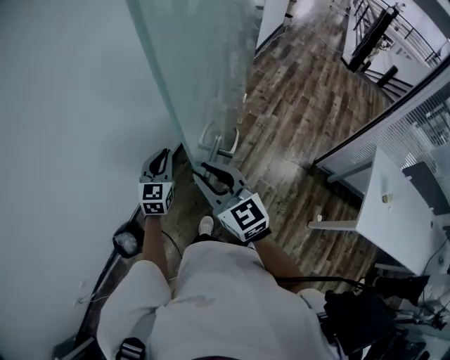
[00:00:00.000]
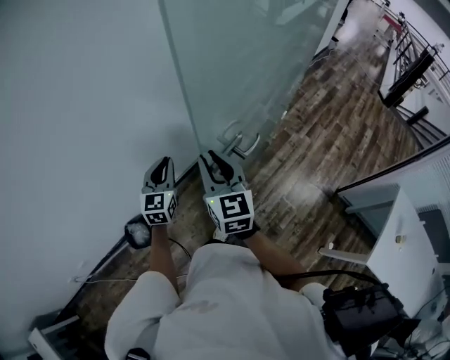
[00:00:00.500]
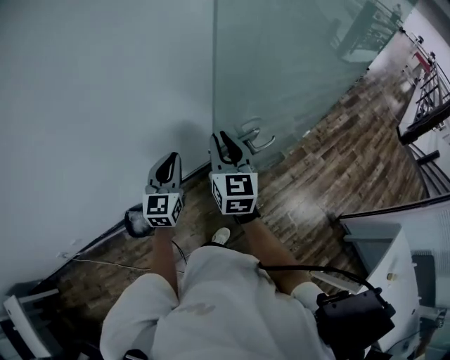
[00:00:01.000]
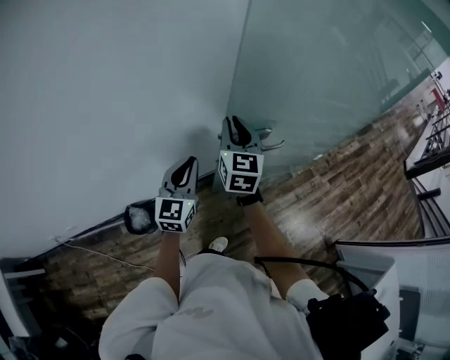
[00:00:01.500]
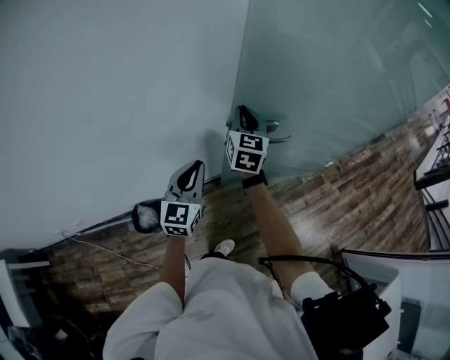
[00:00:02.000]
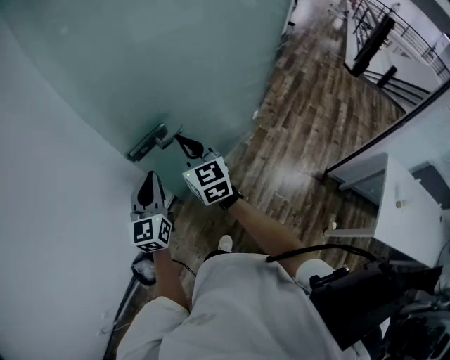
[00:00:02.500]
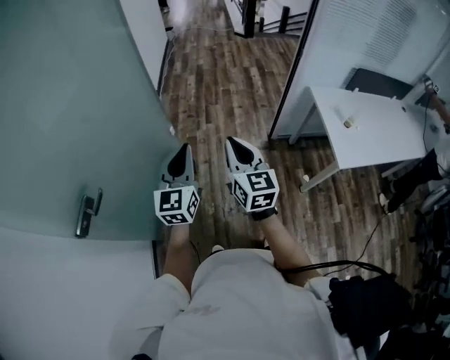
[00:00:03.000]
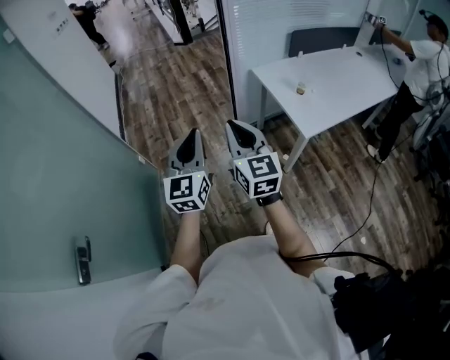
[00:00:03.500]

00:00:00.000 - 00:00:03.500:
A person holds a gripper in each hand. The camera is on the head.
00:00:00.000 - 00:00:02.000: The left gripper is displaced to the left by some 25 cm, and rotates roughly 30 degrees, while the right gripper heads forward and to the left, covering approximately 40 cm.
00:00:02.000 - 00:00:03.500: The two grippers travel together, approximately 80 cm. The right gripper changes its angle by roughly 70 degrees, while the left gripper rotates about 80 degrees.

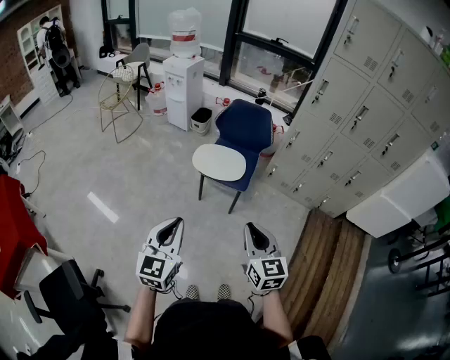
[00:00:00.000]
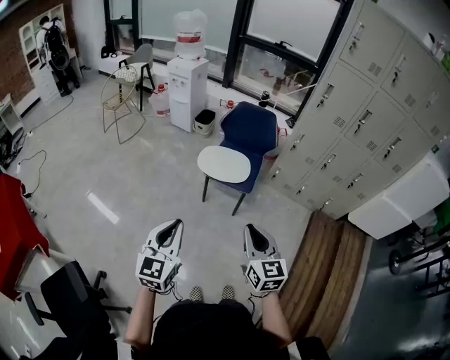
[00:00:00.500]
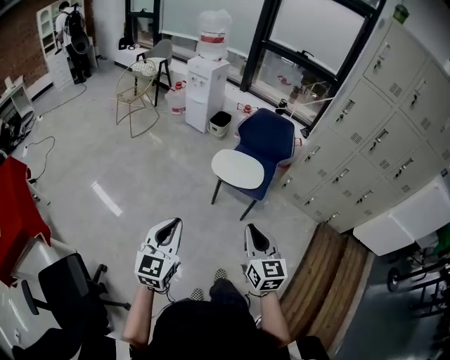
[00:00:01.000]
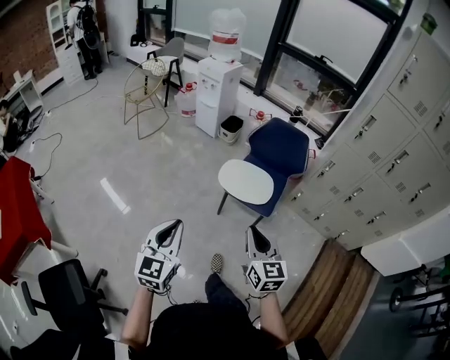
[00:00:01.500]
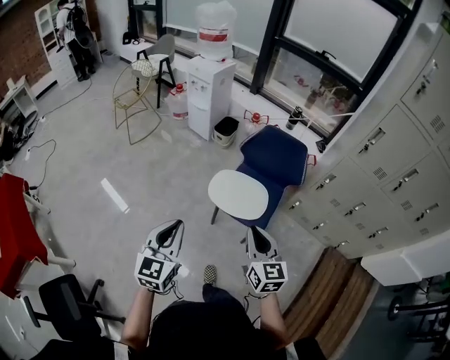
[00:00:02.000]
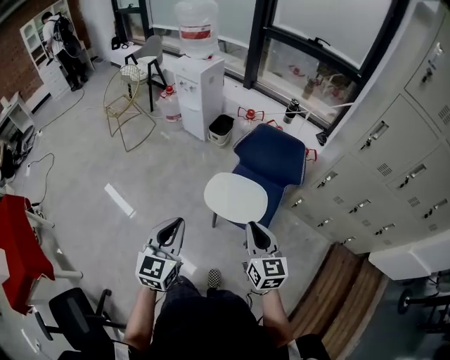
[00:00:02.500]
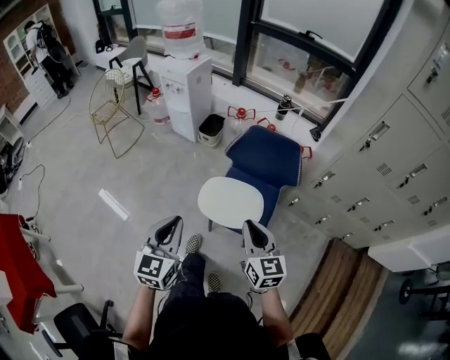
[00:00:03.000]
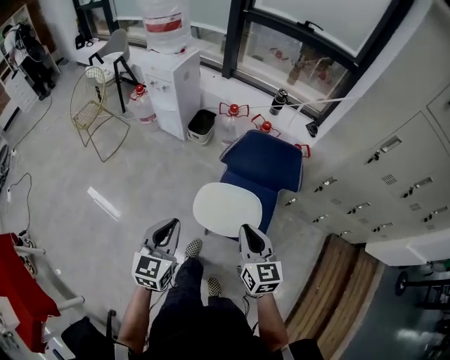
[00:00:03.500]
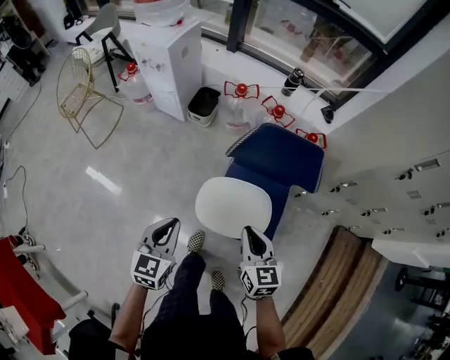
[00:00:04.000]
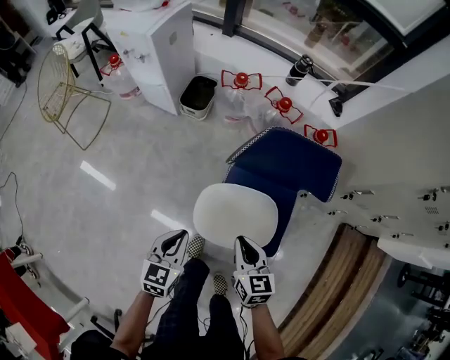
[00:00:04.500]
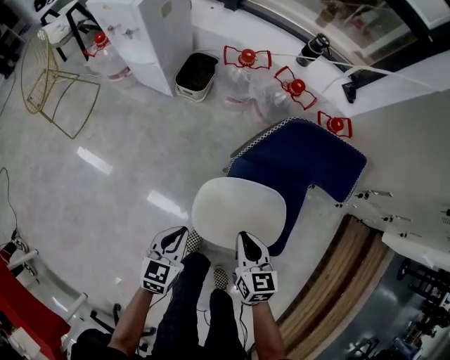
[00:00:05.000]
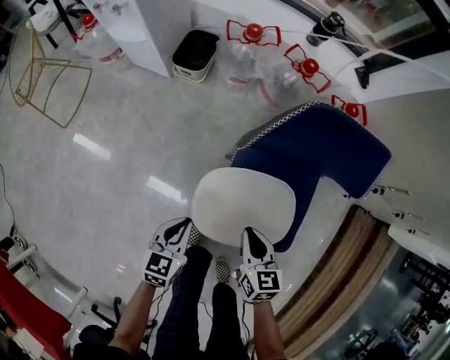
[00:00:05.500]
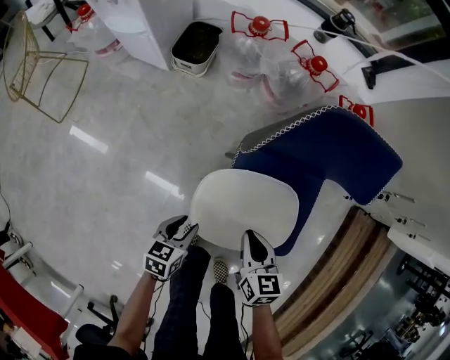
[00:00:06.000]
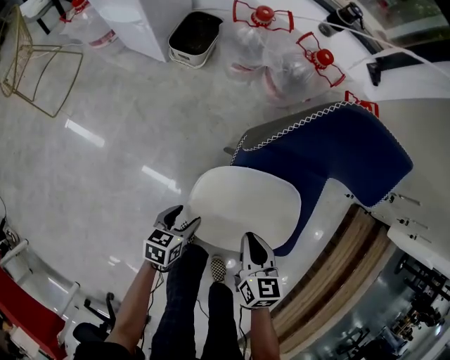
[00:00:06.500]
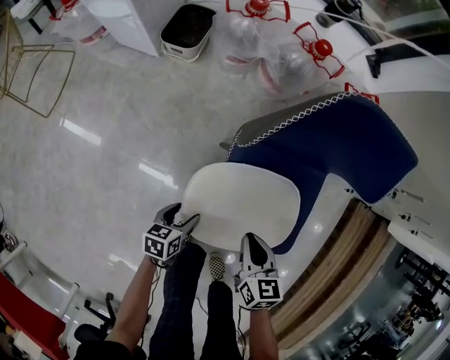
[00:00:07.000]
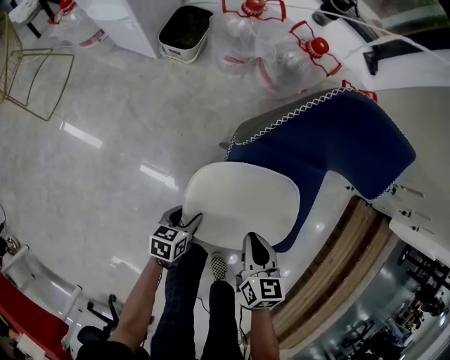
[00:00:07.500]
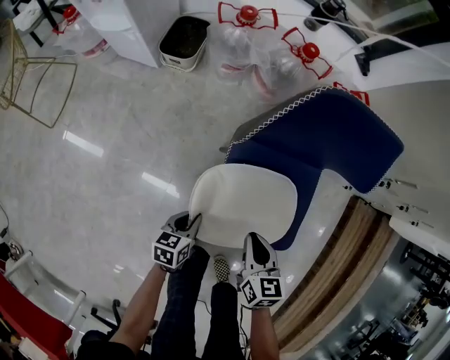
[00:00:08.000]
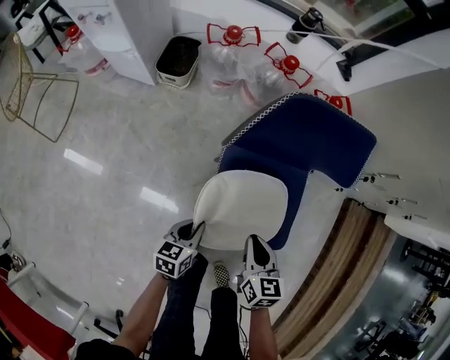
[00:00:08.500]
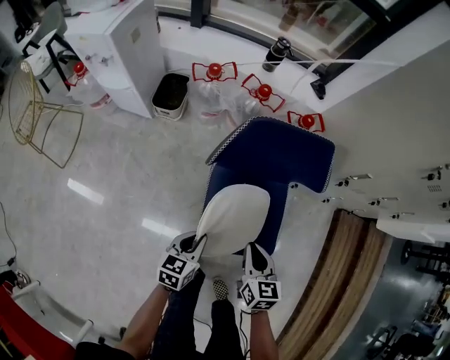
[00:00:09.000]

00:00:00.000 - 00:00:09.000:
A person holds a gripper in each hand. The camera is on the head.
00:00:00.000 - 00:00:02.000: The grippers both shift forward by approximately 35 cm.
00:00:02.000 - 00:00:04.500: The pair of grippers is taken forward, some 50 cm. The two grippers go approximately 30 cm downward. The left gripper rotates some 30 degrees. Meanwhile the right gripper rotates about 30 degrees.
00:00:04.500 - 00:00:07.000: The left gripper shifts about 40 cm downward, rotates about 40 degrees, and opens its fingers, while the right gripper moves downward, some 25 cm.
00:00:07.000 - 00:00:09.000: The grippers both shift upward by roughly 20 cm. The left gripper turns by some 20 degrees, and closes up.

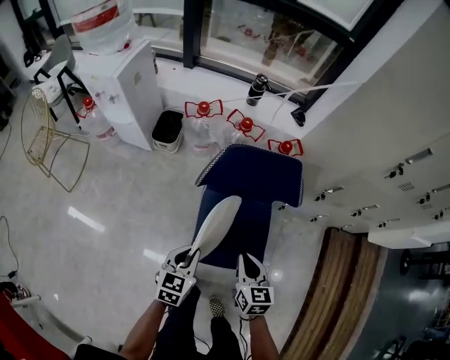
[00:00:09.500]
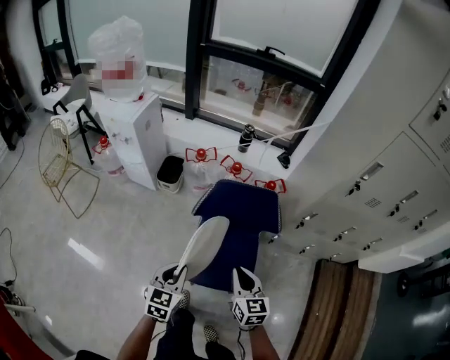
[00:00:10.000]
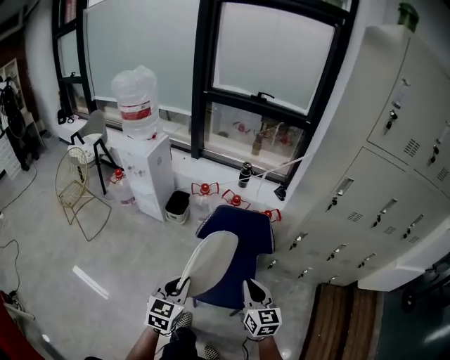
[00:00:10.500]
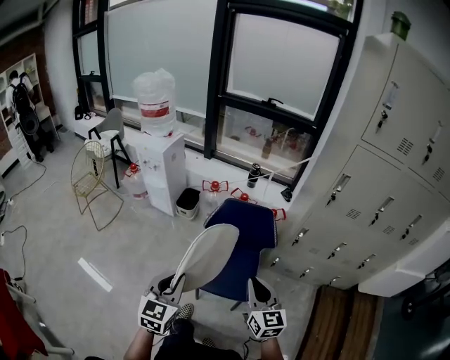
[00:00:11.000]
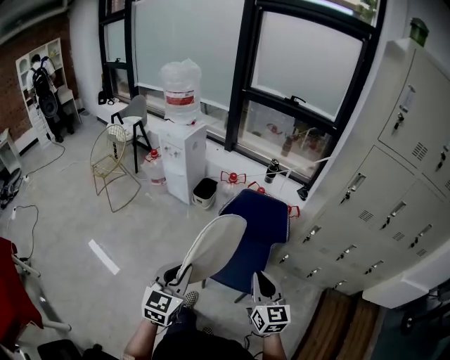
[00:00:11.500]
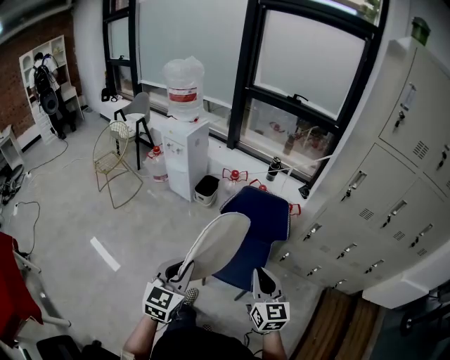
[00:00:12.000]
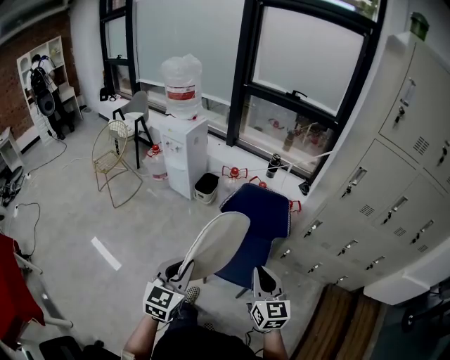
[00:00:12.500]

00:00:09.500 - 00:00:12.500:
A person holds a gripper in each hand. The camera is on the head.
00:00:09.500 - 00:00:11.000: Both grippers move upward and backward, roughly 40 cm. The left gripper rotates approximately 30 degrees. The right gripper changes its angle by roughly 30 degrees.
00:00:11.000 - 00:00:12.500: The left gripper is displaced backward by roughly 5 cm.

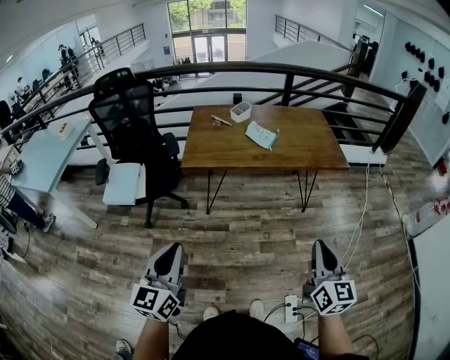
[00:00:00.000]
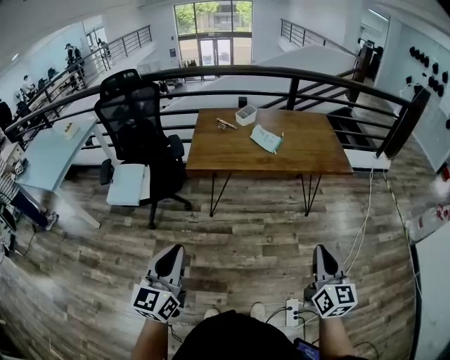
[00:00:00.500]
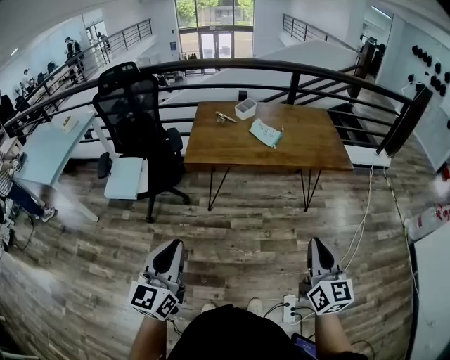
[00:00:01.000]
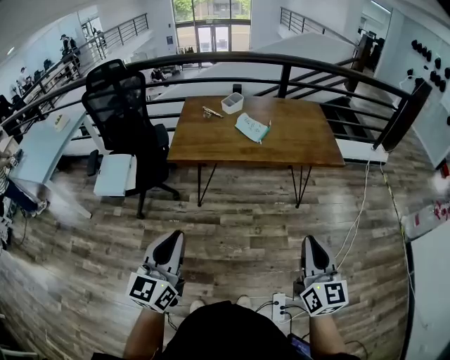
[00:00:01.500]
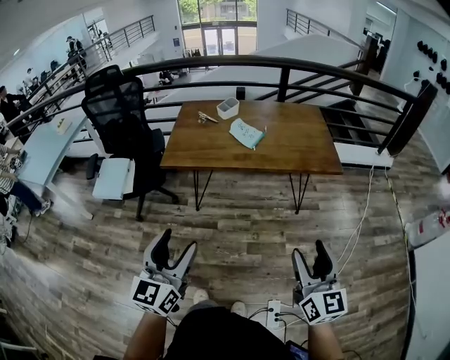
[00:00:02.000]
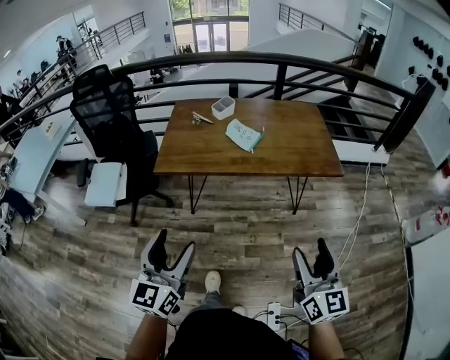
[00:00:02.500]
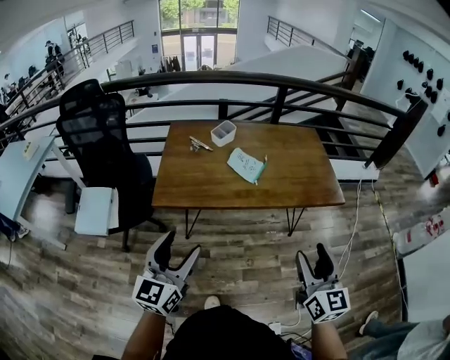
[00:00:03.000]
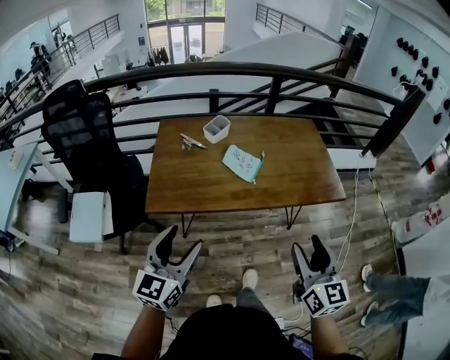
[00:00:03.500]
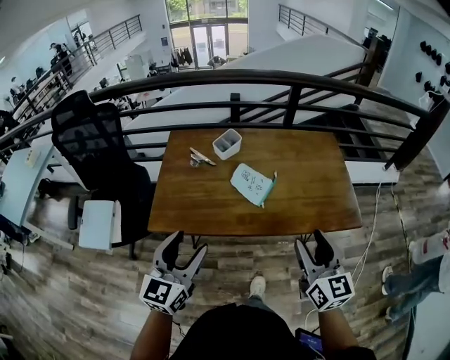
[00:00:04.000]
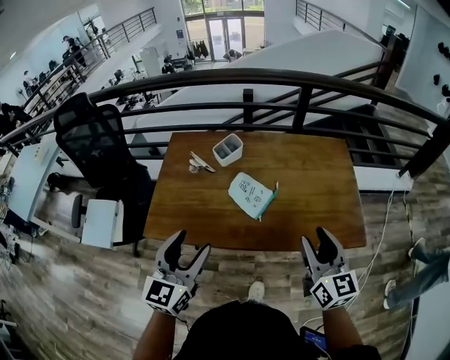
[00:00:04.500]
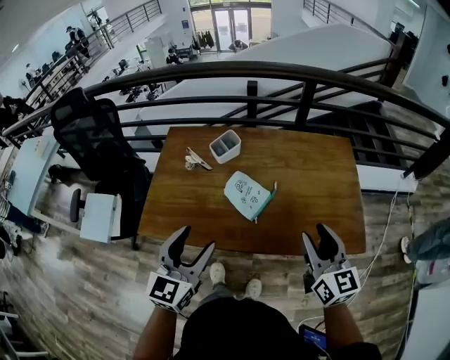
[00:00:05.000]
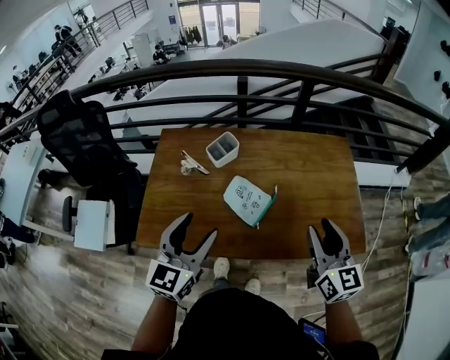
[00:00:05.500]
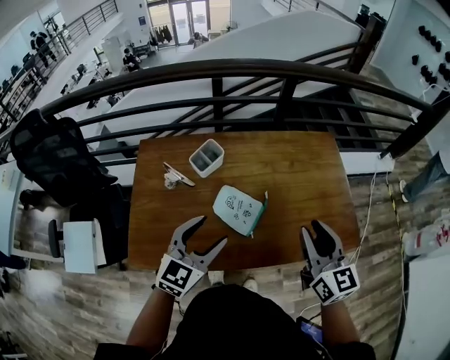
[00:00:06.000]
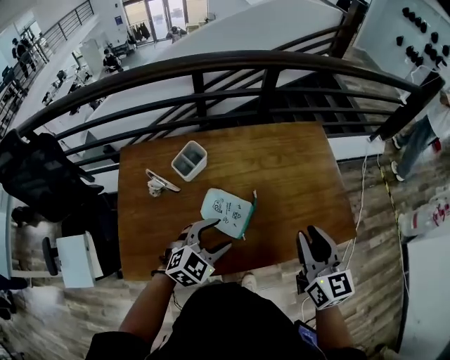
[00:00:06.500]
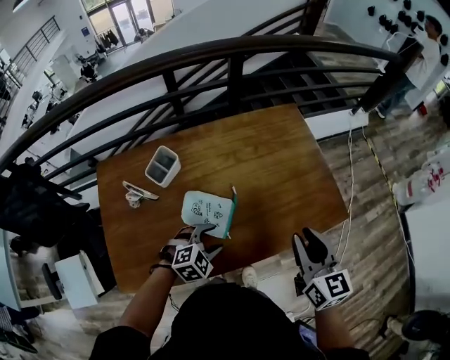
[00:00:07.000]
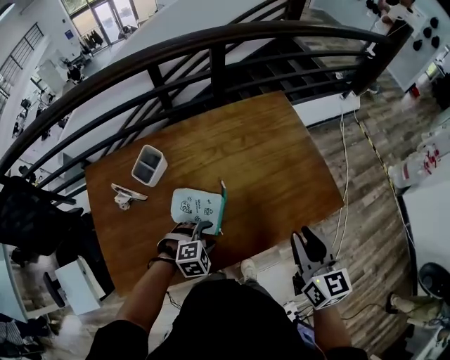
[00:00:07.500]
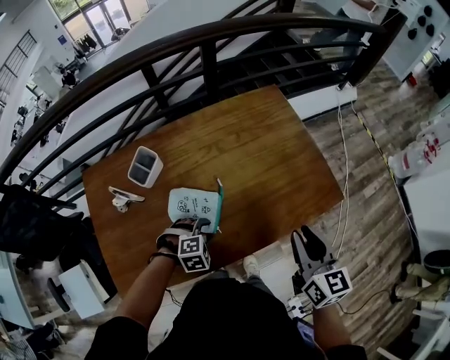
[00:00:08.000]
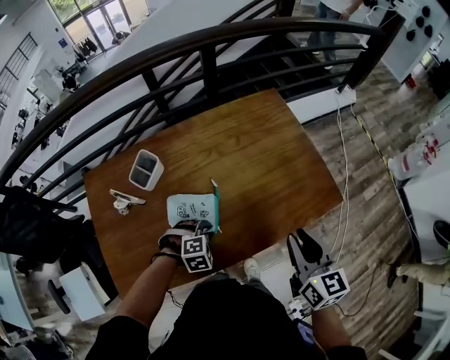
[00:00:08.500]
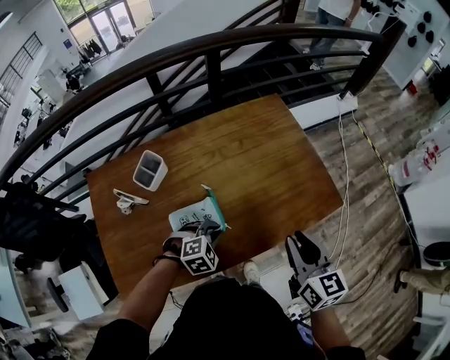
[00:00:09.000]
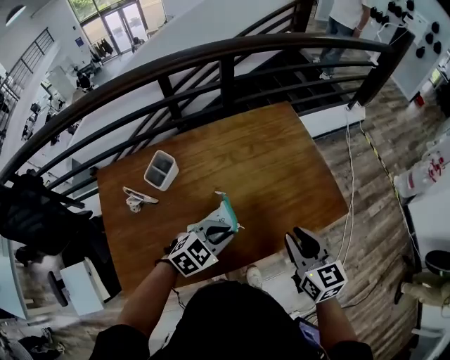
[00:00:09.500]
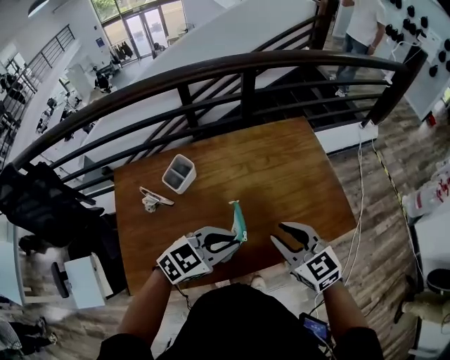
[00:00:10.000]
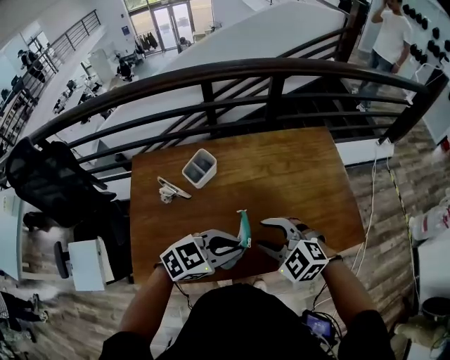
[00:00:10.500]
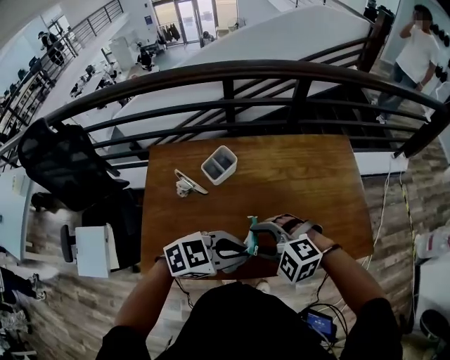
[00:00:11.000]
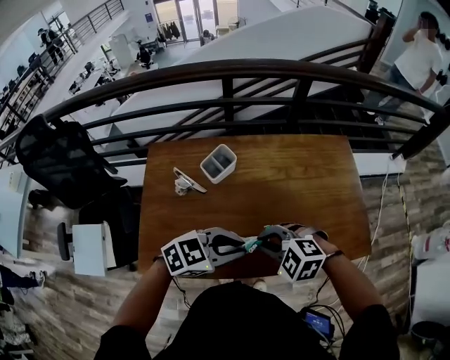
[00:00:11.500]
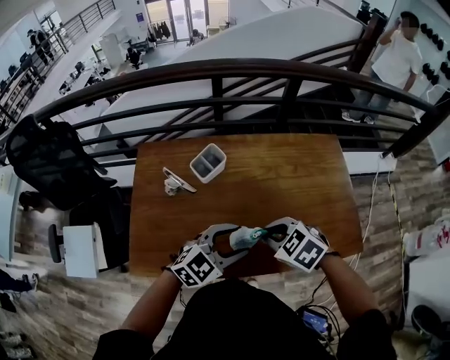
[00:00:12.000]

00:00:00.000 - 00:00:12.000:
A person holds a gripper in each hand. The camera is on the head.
00:00:00.000 - 00:00:02.000: The right gripper goes roughly 10 cm to the right, and opens up. Meanwhile the left gripper moves to the right, some 15 cm, and opens up.
00:00:02.000 - 00:00:04.000: Both grippers move forward, approximately 35 cm.
00:00:04.000 - 00:00:06.000: The left gripper heads forward and to the right, covering some 25 cm, and rotates some 20 degrees, while the right gripper shifts roughly 20 cm forward, and closes its fingers.
00:00:06.000 - 00:00:08.000: The left gripper heads downward, covering some 25 cm, and tips its fingers downward by about 50 degrees. The right gripper moves approximately 15 cm, and swivels about 30 degrees.
00:00:08.000 - 00:00:10.000: The right gripper travels to the left by some 15 cm, and rotates some 40 degrees; the left gripper heads upward, covering about 20 cm, angles its fingers upward, by approximately 40 degrees, and closes.
00:00:10.000 - 00:00:12.000: The left gripper moves roughly 5 cm, and opens up. Meanwhile the right gripper ends up some 10 cm from where it was, points its fingers roughly 30 degrees further downward, and opens and closes again.
